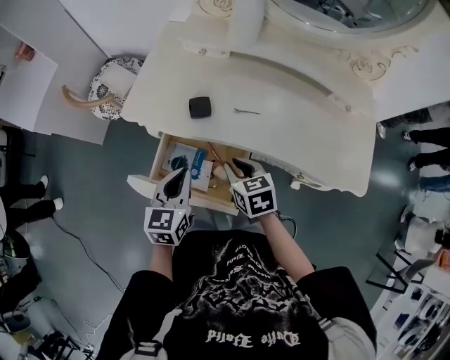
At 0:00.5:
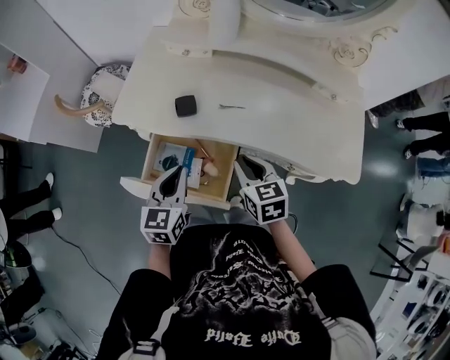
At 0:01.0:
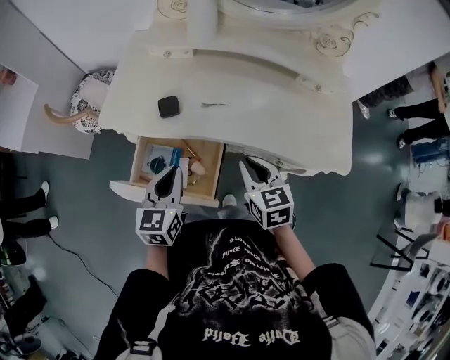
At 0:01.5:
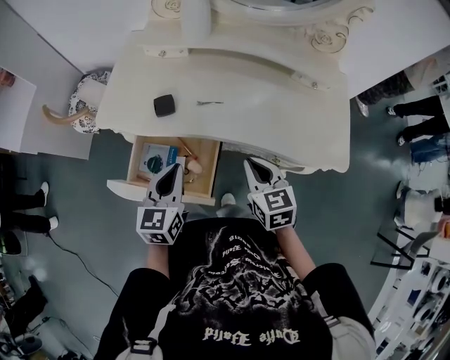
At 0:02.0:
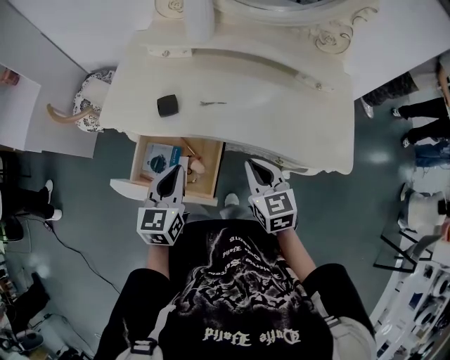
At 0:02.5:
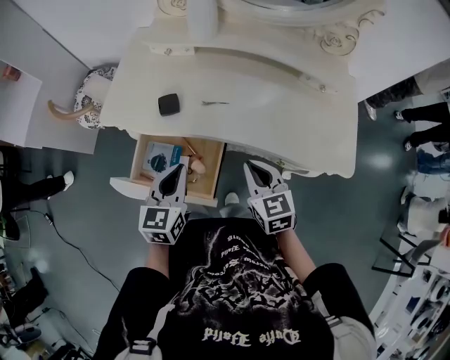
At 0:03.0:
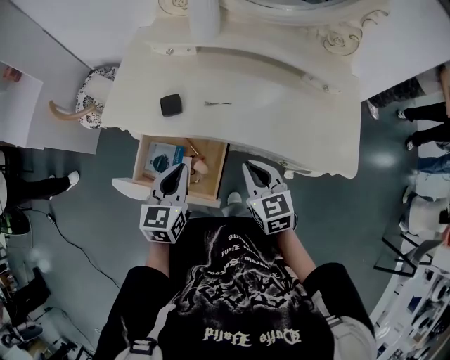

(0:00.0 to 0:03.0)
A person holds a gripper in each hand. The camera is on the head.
0:00.0 - 0:01.5: The right gripper shifts roughly 15 cm to the right and upward. Meanwhile the left gripper goes some 5 cm to the right.
0:01.5 - 0:03.0: There are only small adjustments of the grippers.

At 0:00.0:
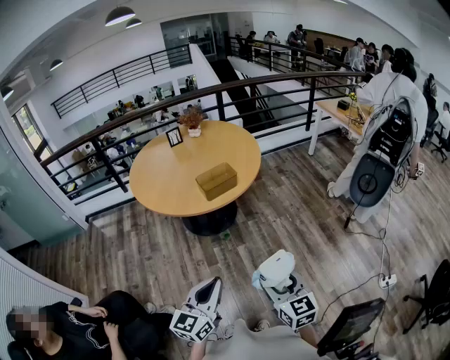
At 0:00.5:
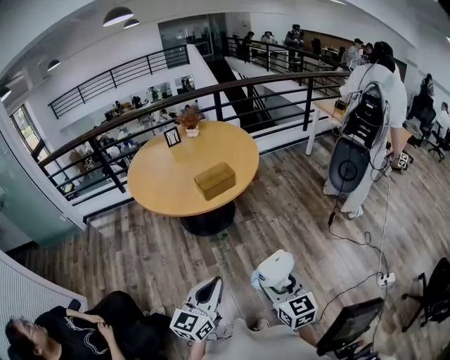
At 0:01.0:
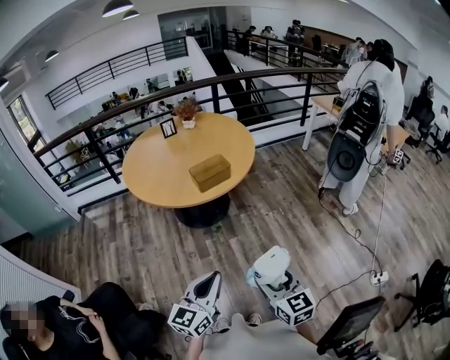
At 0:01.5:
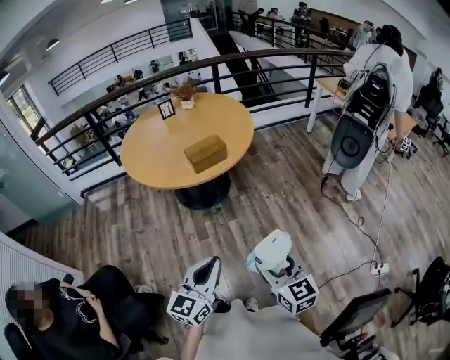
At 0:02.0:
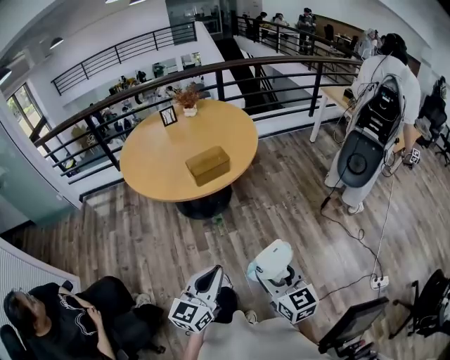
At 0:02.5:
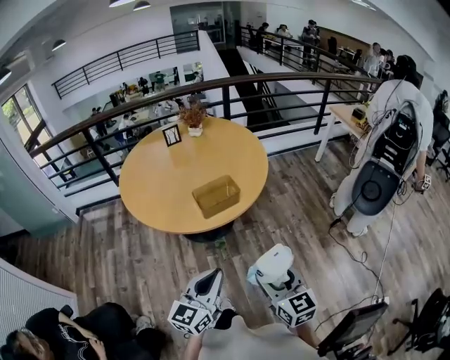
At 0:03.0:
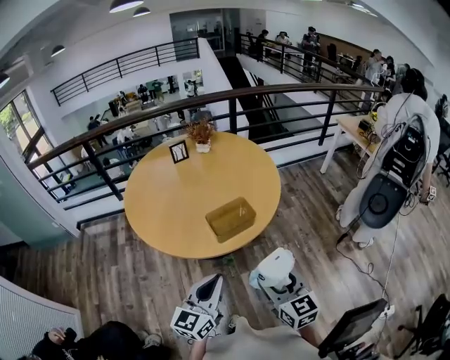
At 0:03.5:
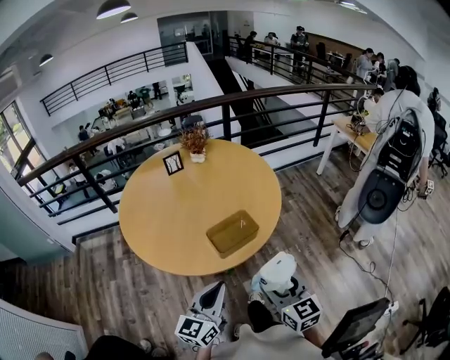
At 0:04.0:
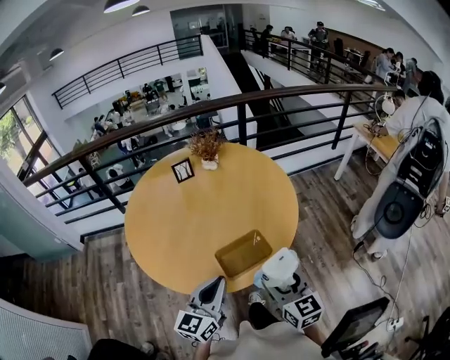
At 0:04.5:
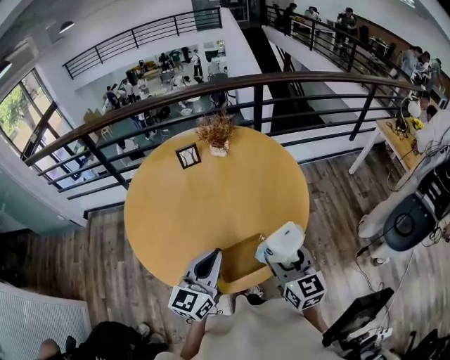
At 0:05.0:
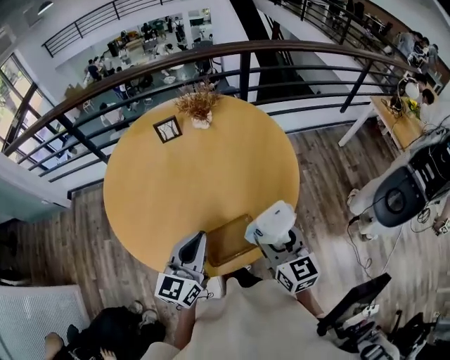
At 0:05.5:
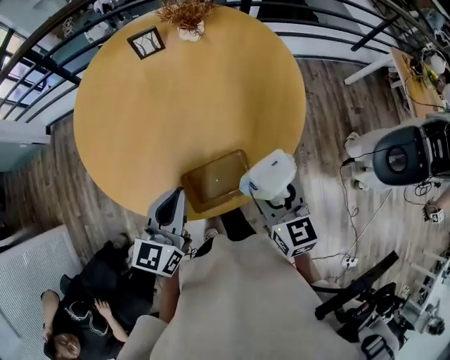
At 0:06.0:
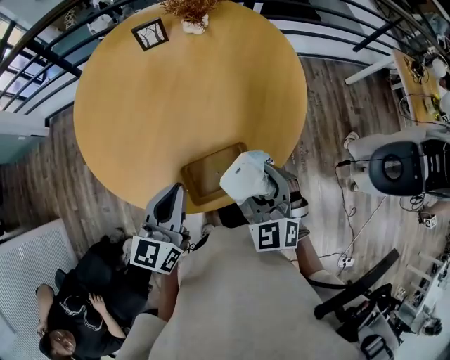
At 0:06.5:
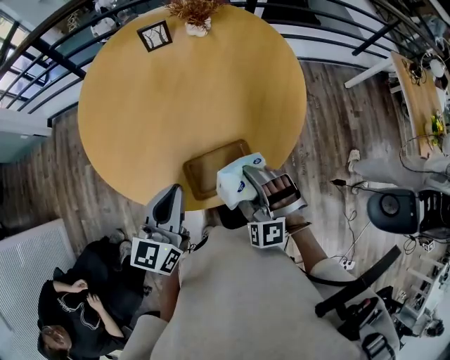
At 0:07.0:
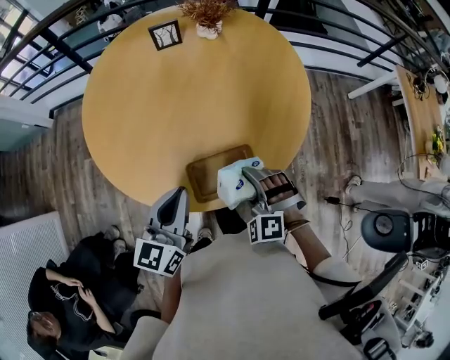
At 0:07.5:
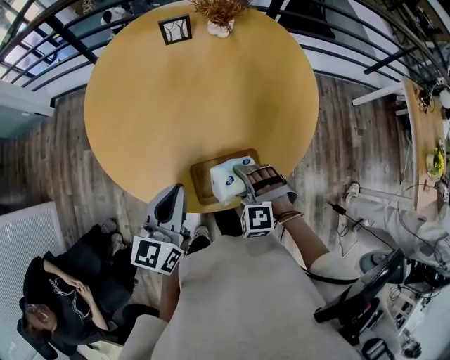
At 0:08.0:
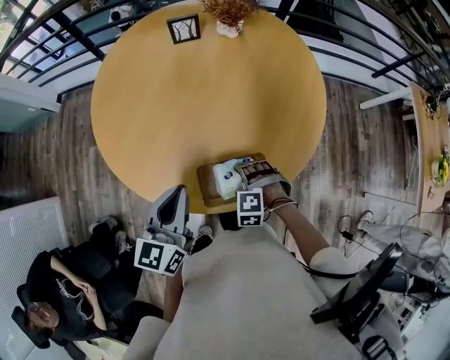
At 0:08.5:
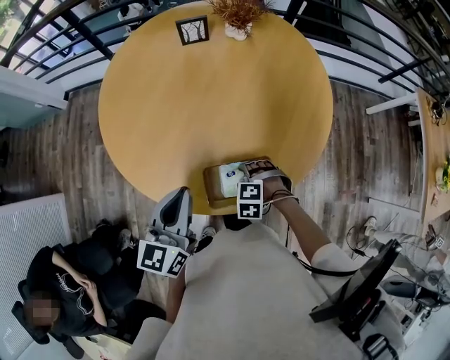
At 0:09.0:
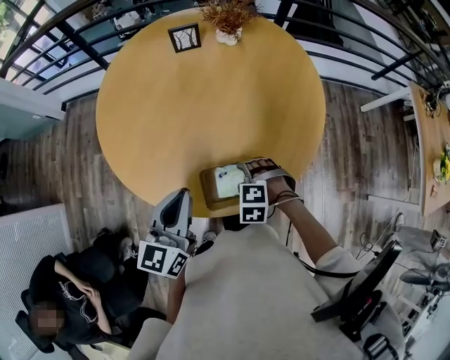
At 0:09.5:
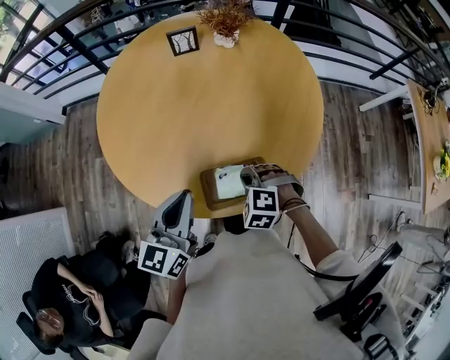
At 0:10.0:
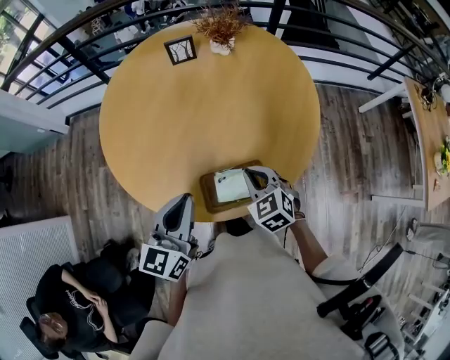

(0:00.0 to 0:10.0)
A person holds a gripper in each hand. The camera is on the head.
0:00.0 - 0:02.0: The left gripper travels to the right by approximately 5 cm.
0:02.0 - 0:04.0: The grippers both shift forward by some 35 cm.
0:04.0 - 0:06.0: Both grippers travel together forward, approximately 10 cm. The right gripper rolls counterclockwise, seen from behind, by roughly 40 degrees.
0:06.0 - 0:08.0: The right gripper goes approximately 20 cm downward, and angles its fingers downward, by roughly 40 degrees.
0:08.0 - 0:10.0: The right gripper travels upward by roughly 10 cm, twists roughly 50 degrees clockwise, seen from behind, and closes its fingers.

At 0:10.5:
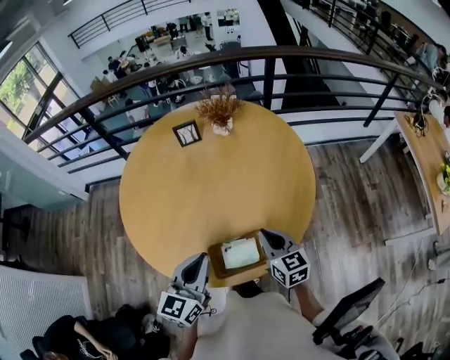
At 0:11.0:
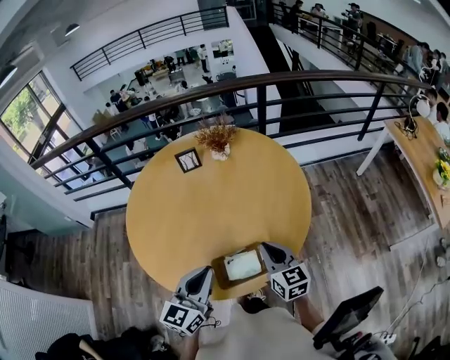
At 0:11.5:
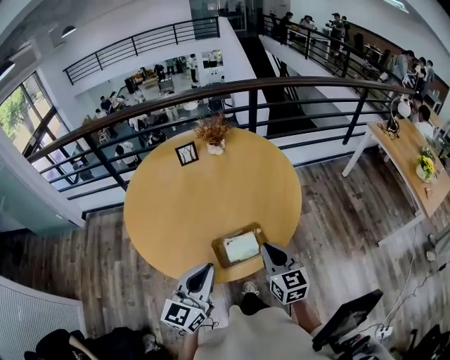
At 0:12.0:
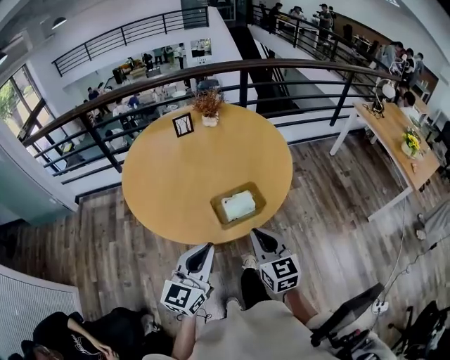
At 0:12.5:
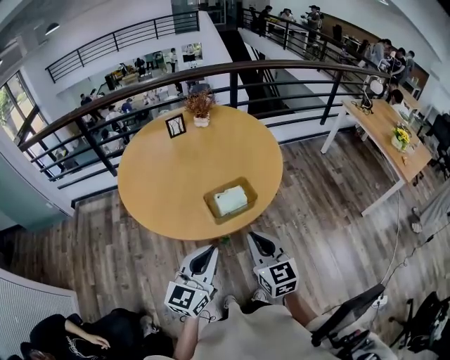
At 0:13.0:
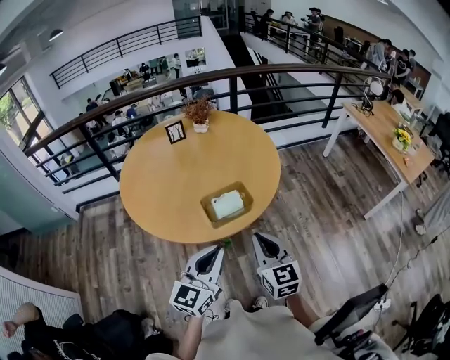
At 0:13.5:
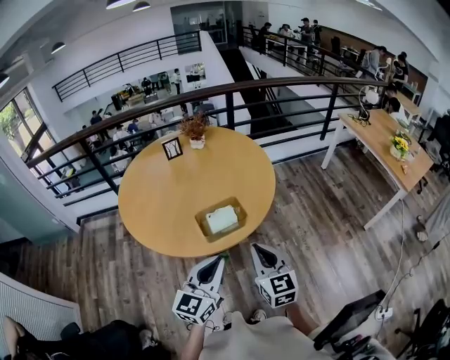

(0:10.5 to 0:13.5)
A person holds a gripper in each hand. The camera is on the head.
0:10.5 - 0:12.0: The grippers both shift backward by about 15 cm.
0:12.0 - 0:13.5: Both grippers travel together to the right, approximately 10 cm.

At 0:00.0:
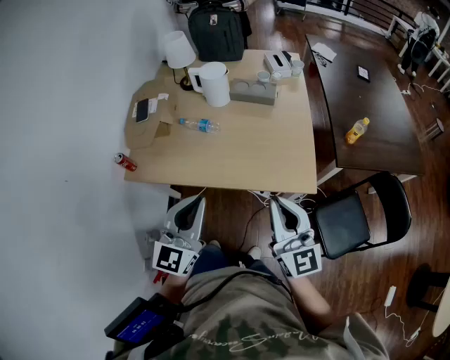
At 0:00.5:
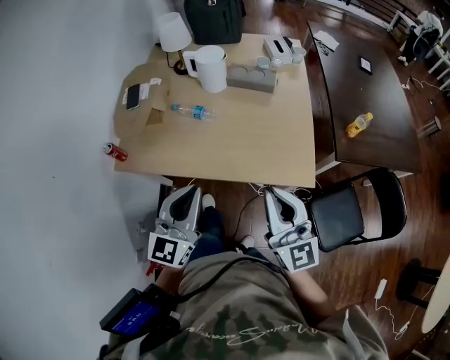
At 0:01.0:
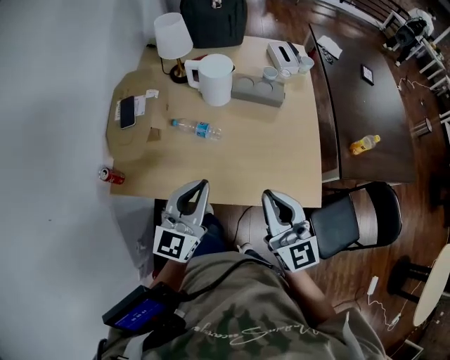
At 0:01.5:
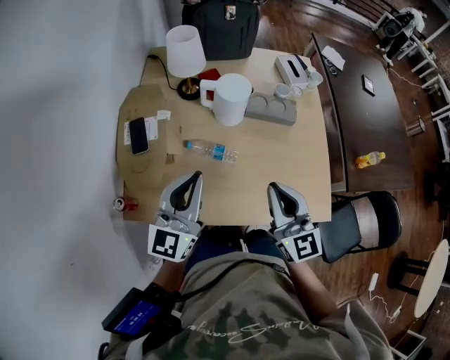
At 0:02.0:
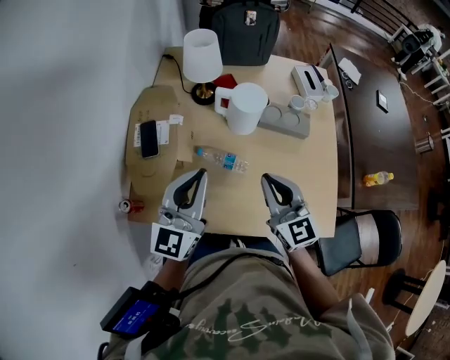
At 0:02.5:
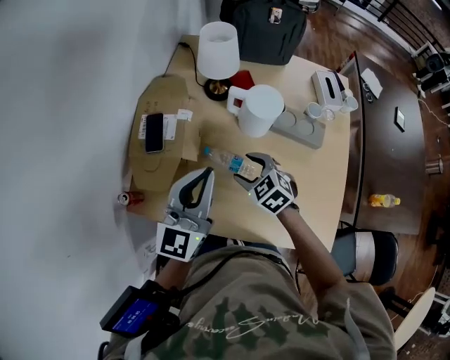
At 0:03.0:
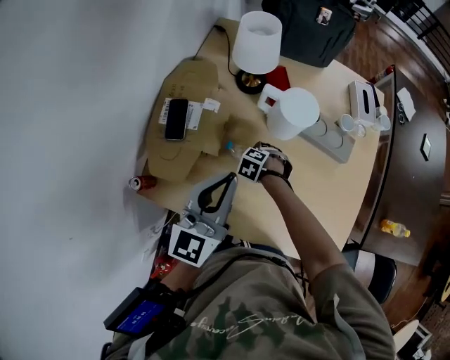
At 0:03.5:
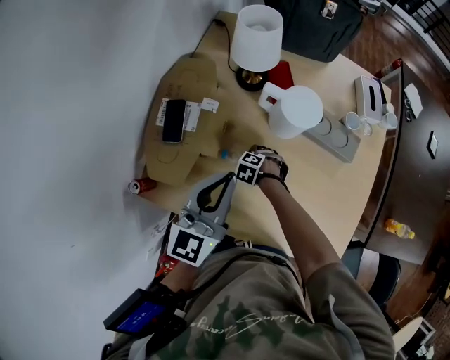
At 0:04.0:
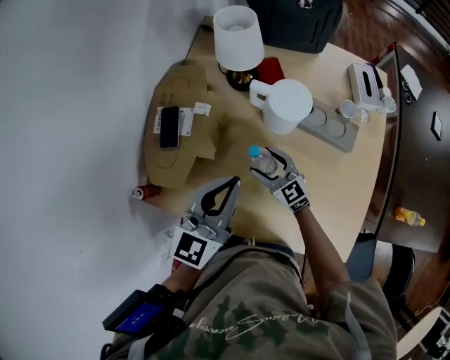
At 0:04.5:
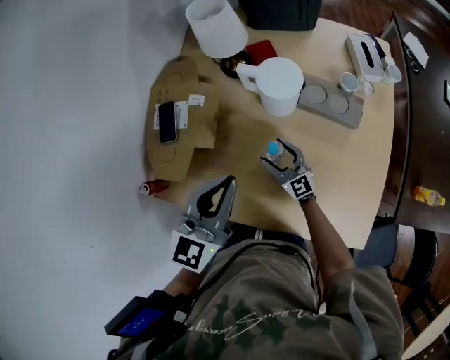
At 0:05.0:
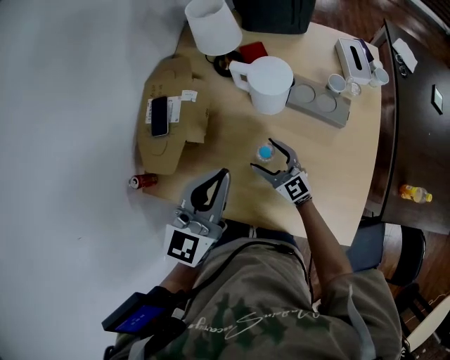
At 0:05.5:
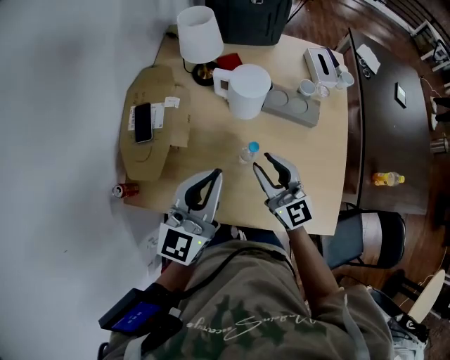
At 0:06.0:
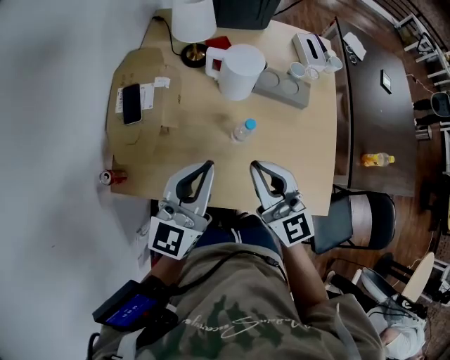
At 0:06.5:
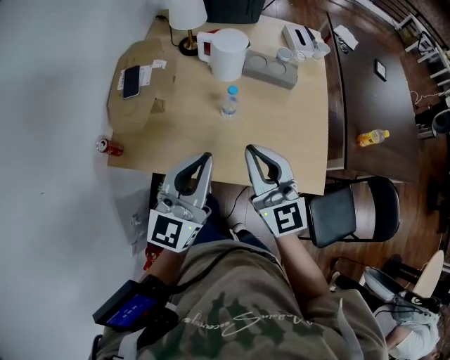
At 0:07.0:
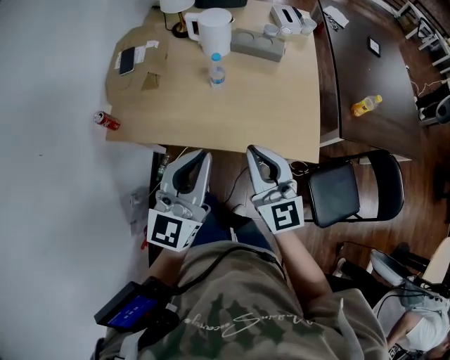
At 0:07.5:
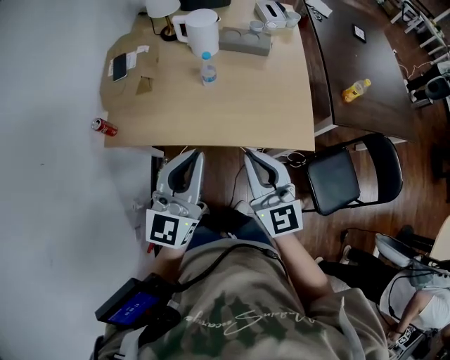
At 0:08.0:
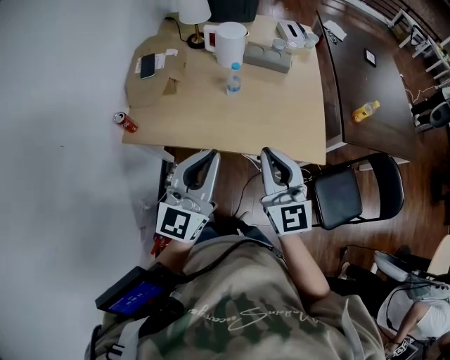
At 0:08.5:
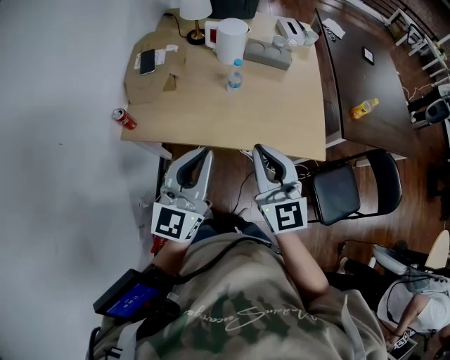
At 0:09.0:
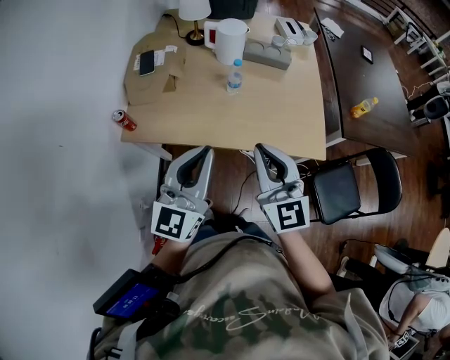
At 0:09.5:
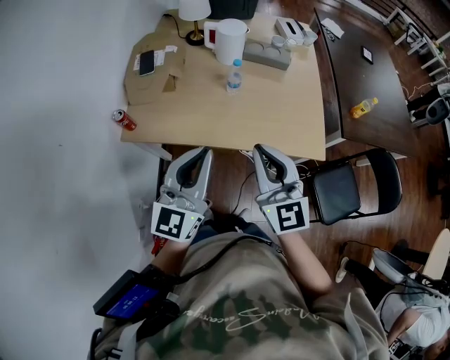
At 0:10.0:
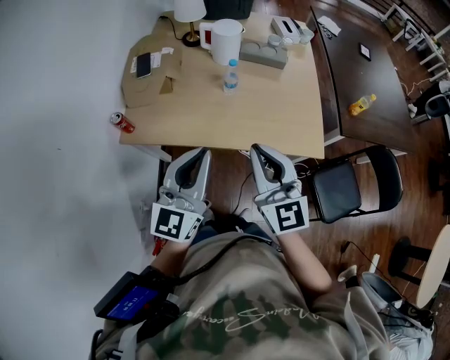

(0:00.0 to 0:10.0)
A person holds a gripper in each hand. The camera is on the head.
0:00.0 - 0:02.0: Both grippers travel together forward and to the left, approximately 35 cm.
0:02.0 - 0:04.0: The right gripper is displaced downward by roughly 20 cm, changes its angle by approximately 30 degrees, and opens its fingers; the left gripper moves approximately 10 cm.
0:04.0 - 0:06.0: The right gripper travels upward and backward by about 30 cm, swivels some 30 degrees, and closes its fingers; the left gripper shifts about 10 cm backward.
0:06.0 - 0:08.0: The two grippers go roughly 25 cm backward.
0:08.0 - 0:10.0: The grippers move only a little.
